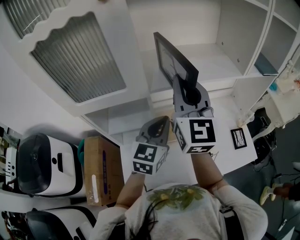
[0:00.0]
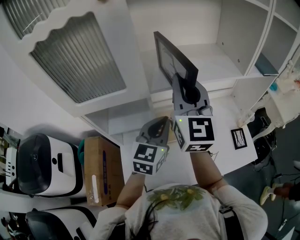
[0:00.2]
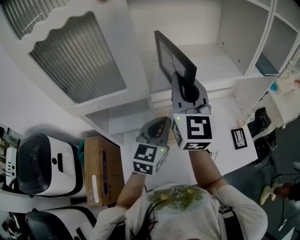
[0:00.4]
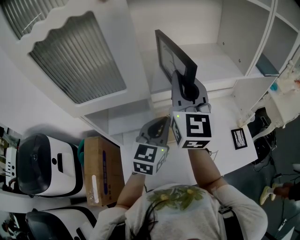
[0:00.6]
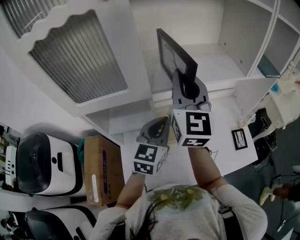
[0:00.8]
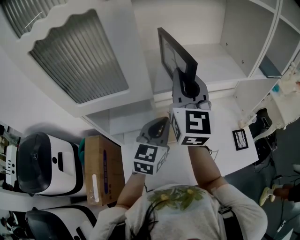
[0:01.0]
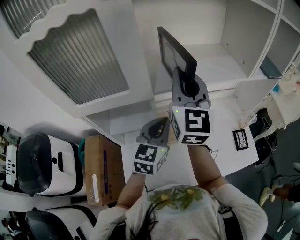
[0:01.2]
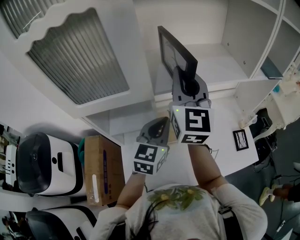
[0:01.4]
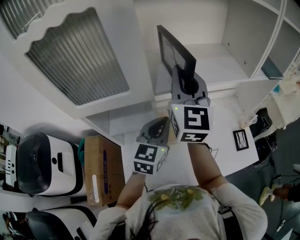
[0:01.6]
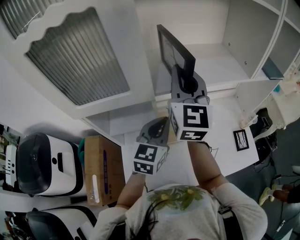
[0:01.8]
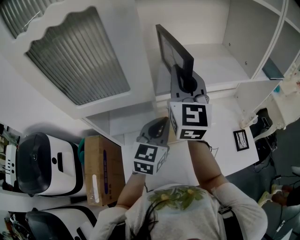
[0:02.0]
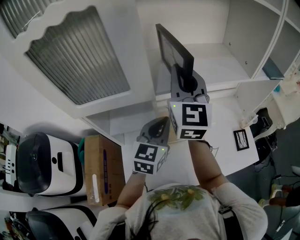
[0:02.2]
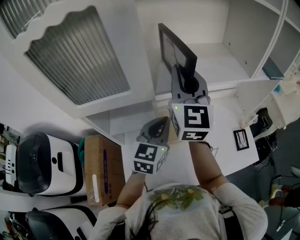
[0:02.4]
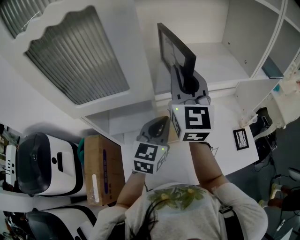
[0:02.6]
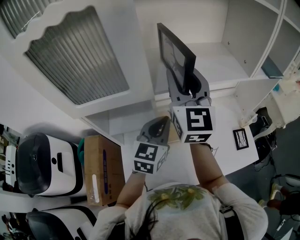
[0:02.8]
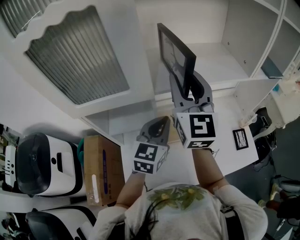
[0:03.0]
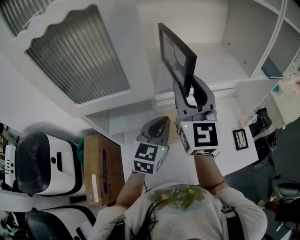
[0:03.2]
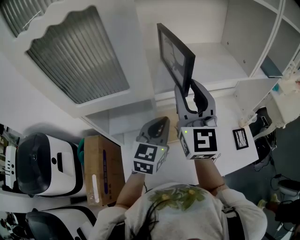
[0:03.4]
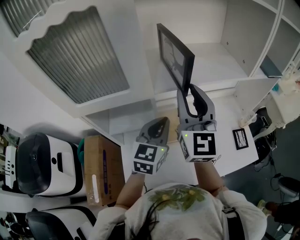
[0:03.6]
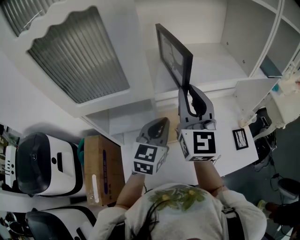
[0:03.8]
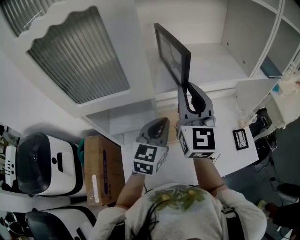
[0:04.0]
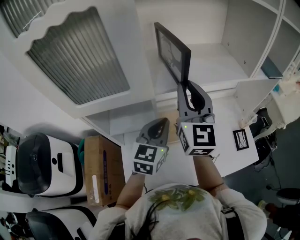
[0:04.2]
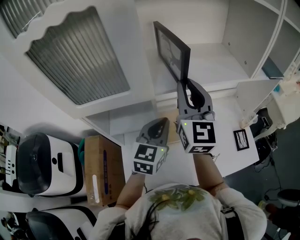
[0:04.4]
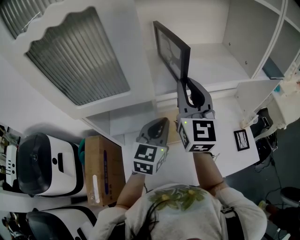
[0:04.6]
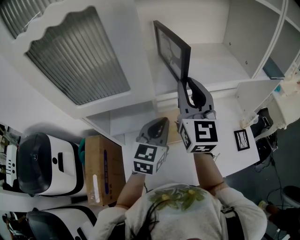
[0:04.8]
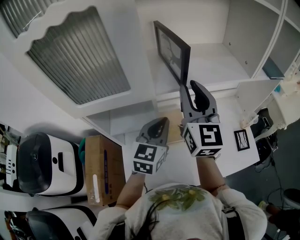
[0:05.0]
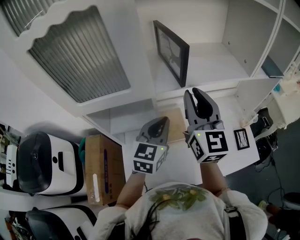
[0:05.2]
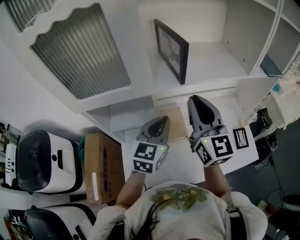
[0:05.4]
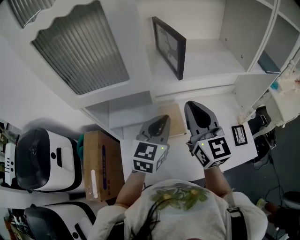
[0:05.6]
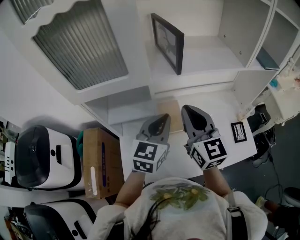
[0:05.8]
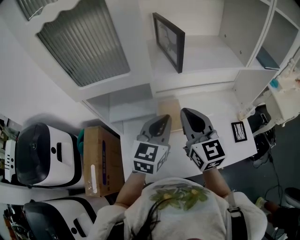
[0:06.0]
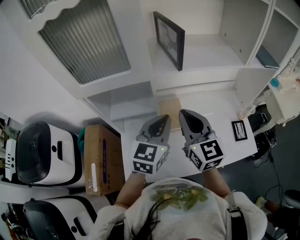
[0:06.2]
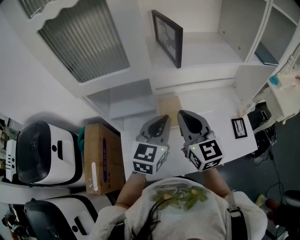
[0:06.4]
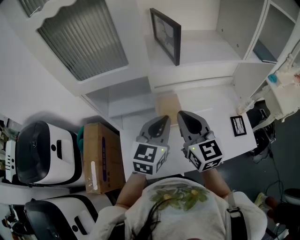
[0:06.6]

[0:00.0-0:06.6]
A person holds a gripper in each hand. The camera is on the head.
0:00.0 to 0:01.6: The right gripper changes place by some 5 cm.
0:01.6 to 0:03.2: The right gripper opens up.
0:03.2 to 0:05.0: The grippers make only small movements.
0:05.0 to 0:06.6: The right gripper travels backward and downward by about 15 cm, and changes its angle by roughly 20 degrees; the left gripper is displaced backward by about 10 cm.

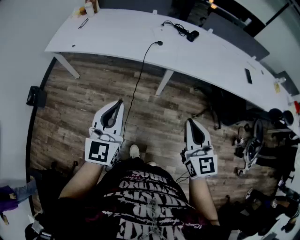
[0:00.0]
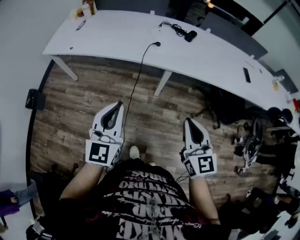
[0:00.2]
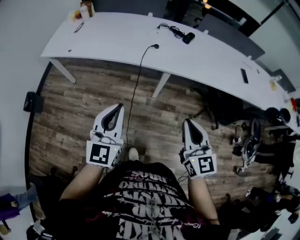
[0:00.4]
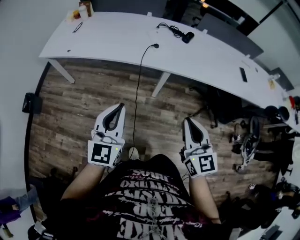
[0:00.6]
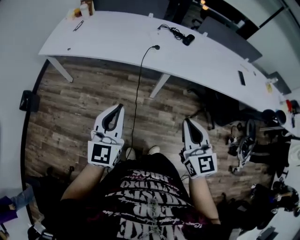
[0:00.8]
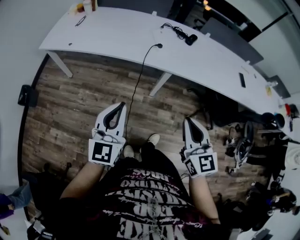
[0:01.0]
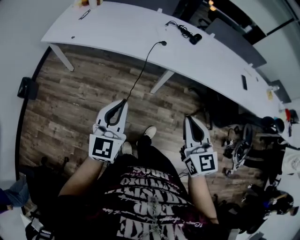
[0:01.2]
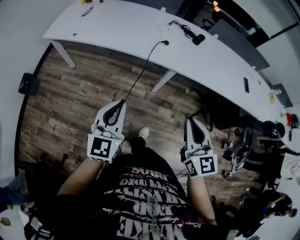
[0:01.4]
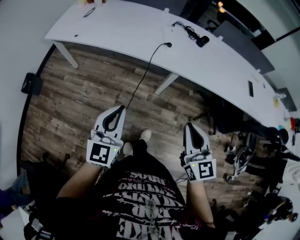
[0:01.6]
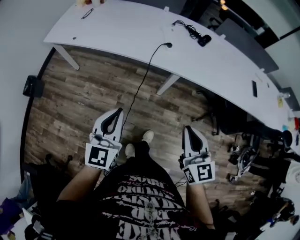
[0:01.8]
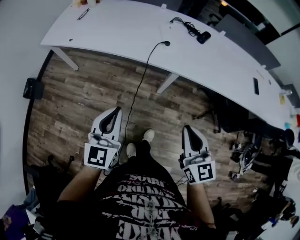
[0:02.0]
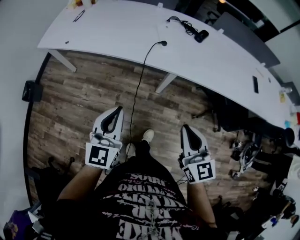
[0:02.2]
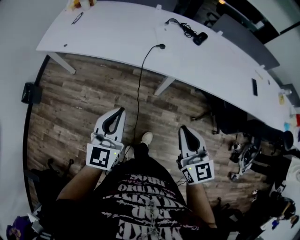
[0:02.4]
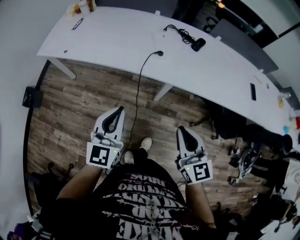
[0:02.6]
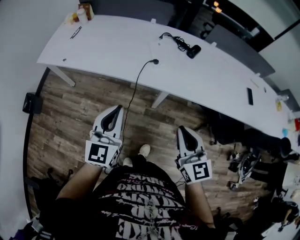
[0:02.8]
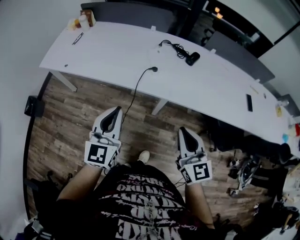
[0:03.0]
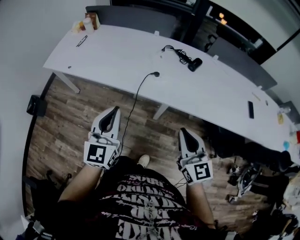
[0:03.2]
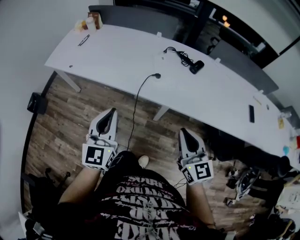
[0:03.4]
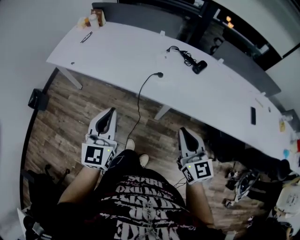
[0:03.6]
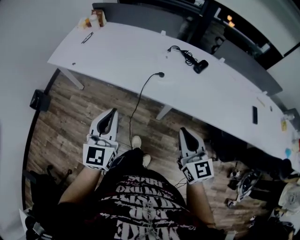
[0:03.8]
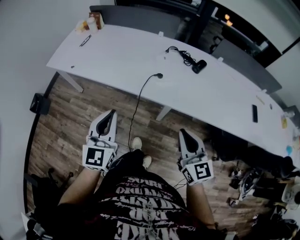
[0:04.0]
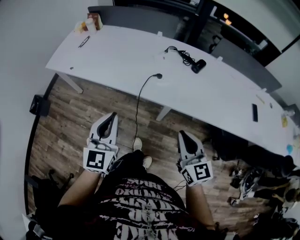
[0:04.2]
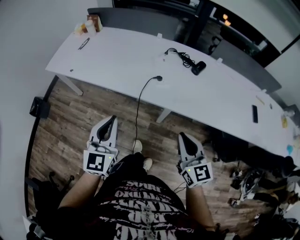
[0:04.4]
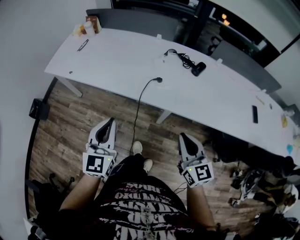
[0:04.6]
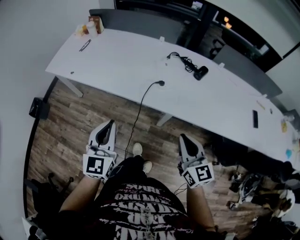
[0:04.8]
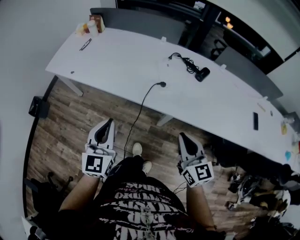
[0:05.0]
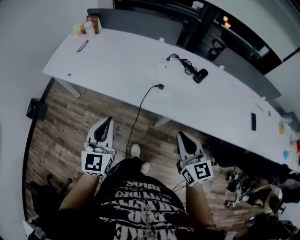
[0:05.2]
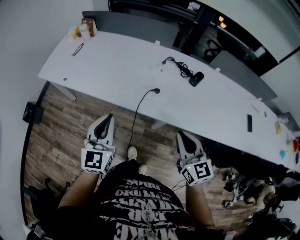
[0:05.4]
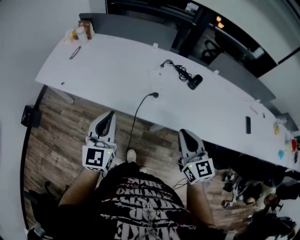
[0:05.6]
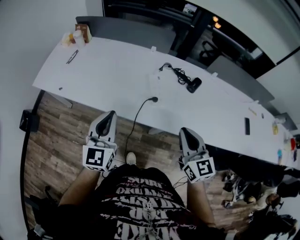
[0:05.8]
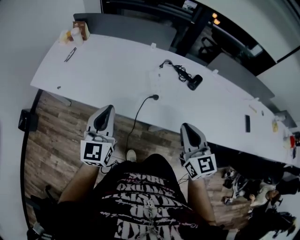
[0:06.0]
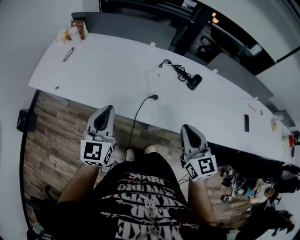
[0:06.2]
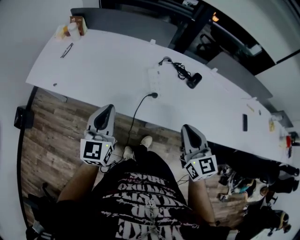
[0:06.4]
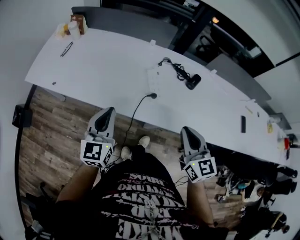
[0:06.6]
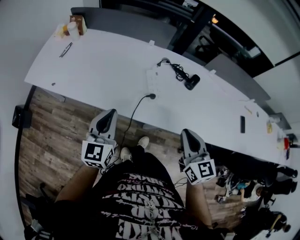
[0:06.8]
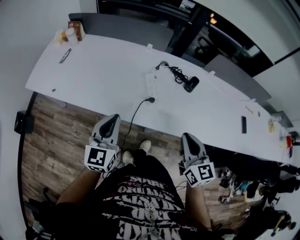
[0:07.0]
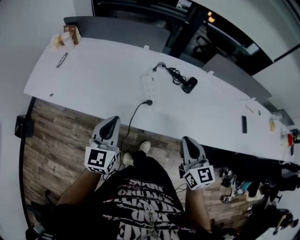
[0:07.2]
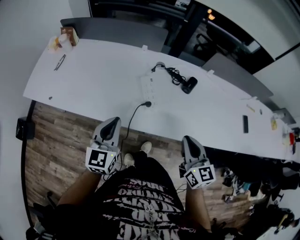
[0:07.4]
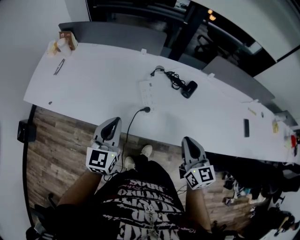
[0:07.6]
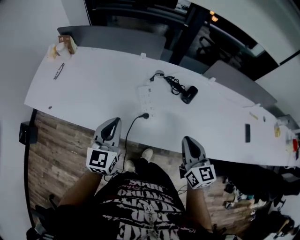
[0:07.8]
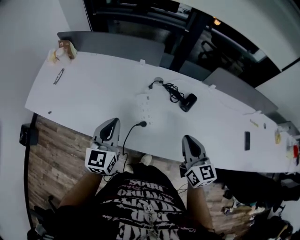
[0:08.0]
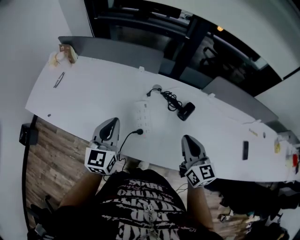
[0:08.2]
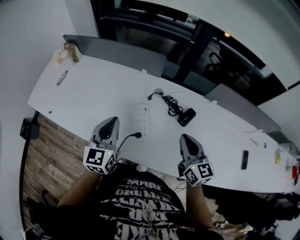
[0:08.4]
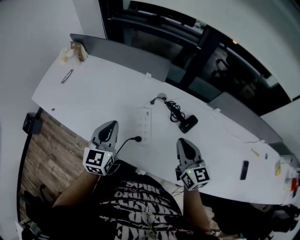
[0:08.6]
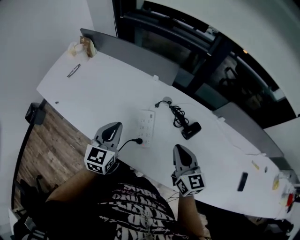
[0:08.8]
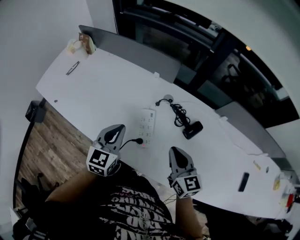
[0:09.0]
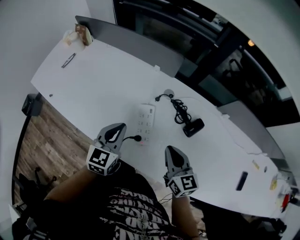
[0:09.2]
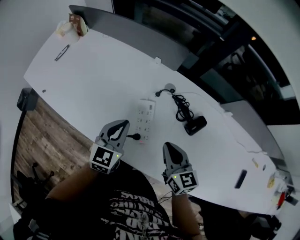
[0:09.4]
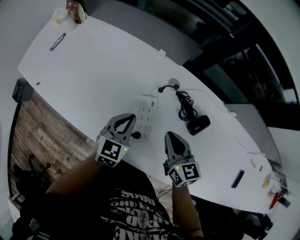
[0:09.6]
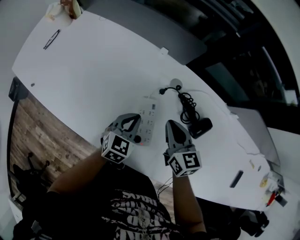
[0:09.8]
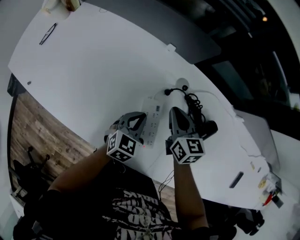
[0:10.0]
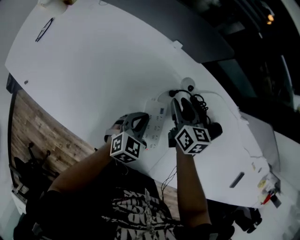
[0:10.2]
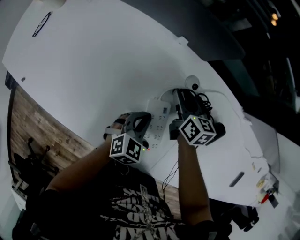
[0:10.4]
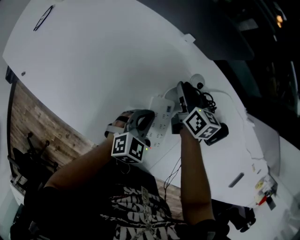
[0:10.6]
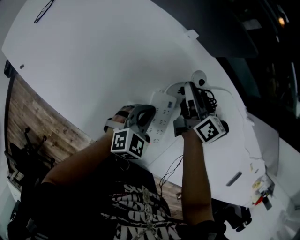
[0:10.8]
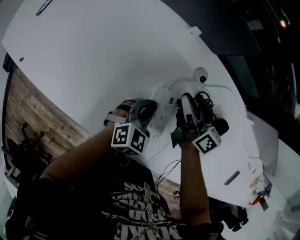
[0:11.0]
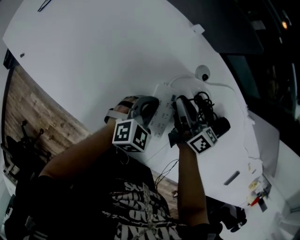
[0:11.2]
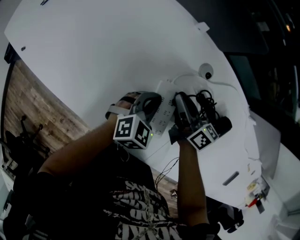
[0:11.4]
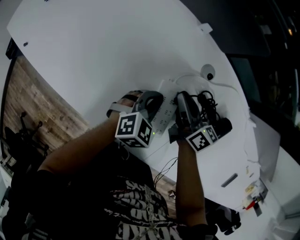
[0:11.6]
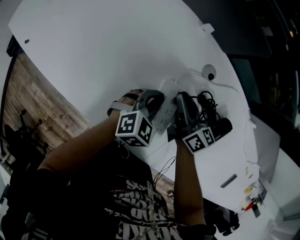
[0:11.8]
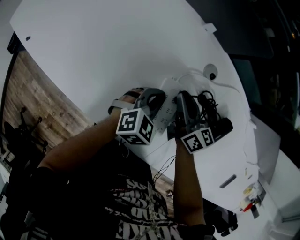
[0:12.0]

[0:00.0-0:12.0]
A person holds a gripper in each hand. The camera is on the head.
0:00.0 to 0:01.6: The right gripper shifts by some 5 cm. Meanwhile the left gripper shifts by approximately 5 cm.
0:01.6 to 0:03.0: The two grippers go about 15 cm forward and to the right.
0:03.0 to 0:04.4: The grippers make only small movements.
0:04.4 to 0:06.0: Both grippers move forward, about 15 cm.
0:06.0 to 0:07.6: The right gripper goes about 5 cm to the right. Meanwhile the left gripper is displaced to the right and forward by roughly 10 cm.
0:07.6 to 0:09.0: The left gripper shifts some 15 cm forward and to the right. The right gripper goes approximately 15 cm forward.
0:09.0 to 0:10.4: The right gripper shifts roughly 35 cm forward and downward, changes its angle by about 30 degrees, and opens its fingers; the left gripper heads downward, covering some 25 cm, and turns by approximately 30 degrees.
0:10.4 to 0:12.0: The right gripper goes roughly 10 cm backward, rotates some 20 degrees, and closes.

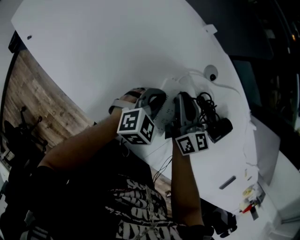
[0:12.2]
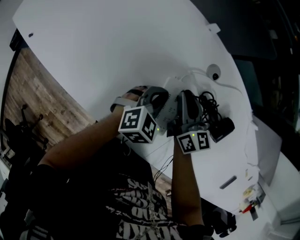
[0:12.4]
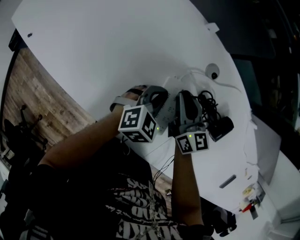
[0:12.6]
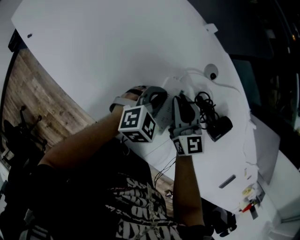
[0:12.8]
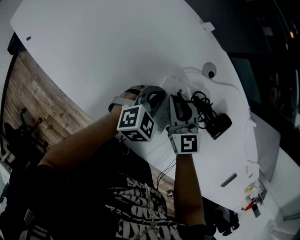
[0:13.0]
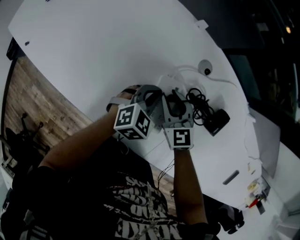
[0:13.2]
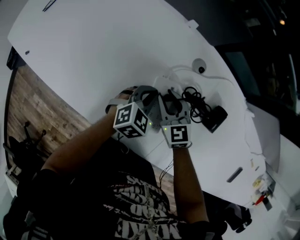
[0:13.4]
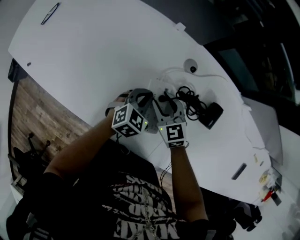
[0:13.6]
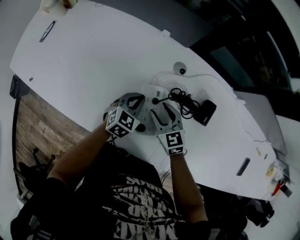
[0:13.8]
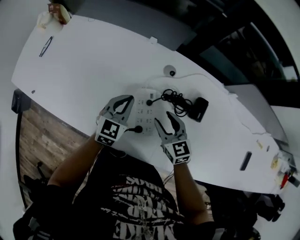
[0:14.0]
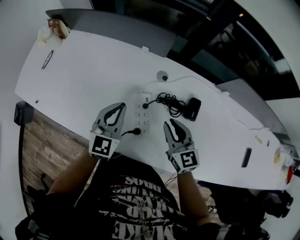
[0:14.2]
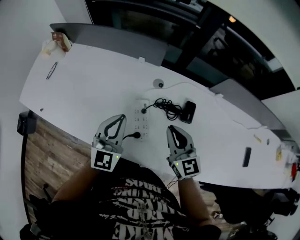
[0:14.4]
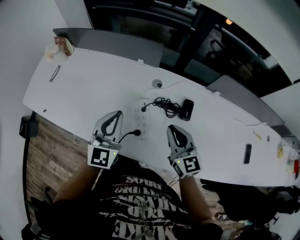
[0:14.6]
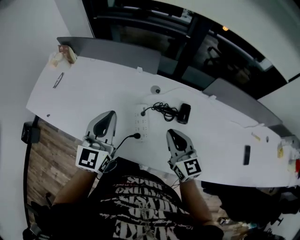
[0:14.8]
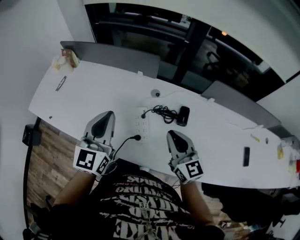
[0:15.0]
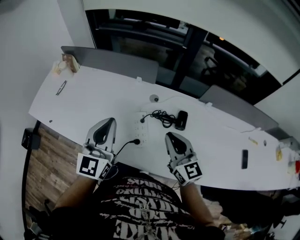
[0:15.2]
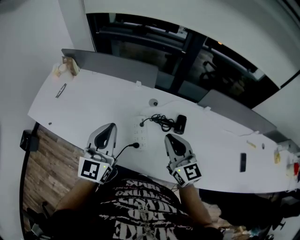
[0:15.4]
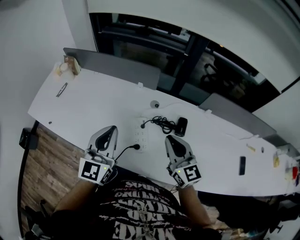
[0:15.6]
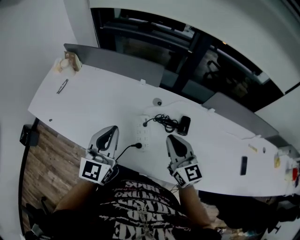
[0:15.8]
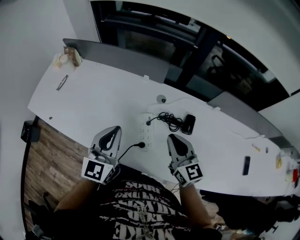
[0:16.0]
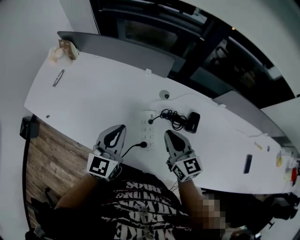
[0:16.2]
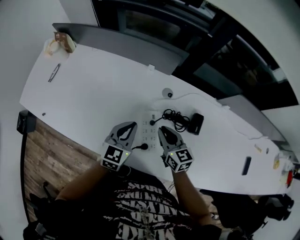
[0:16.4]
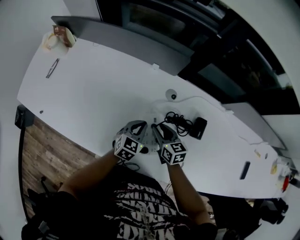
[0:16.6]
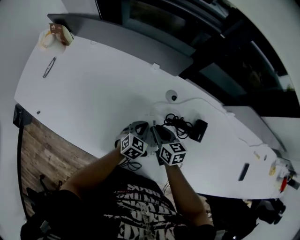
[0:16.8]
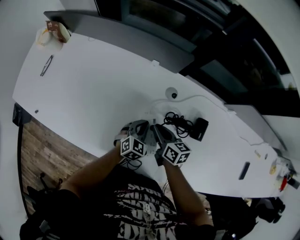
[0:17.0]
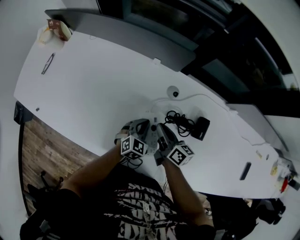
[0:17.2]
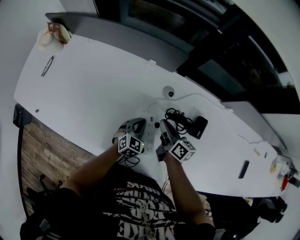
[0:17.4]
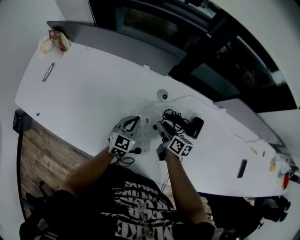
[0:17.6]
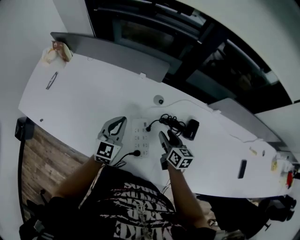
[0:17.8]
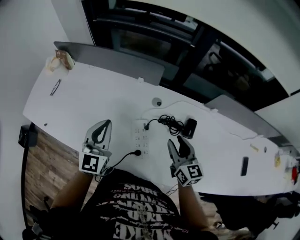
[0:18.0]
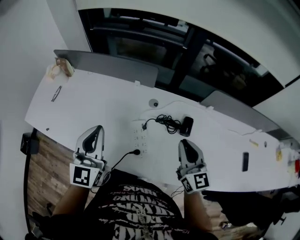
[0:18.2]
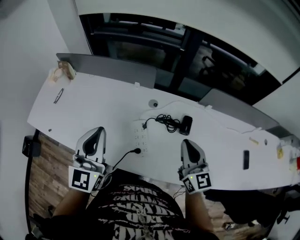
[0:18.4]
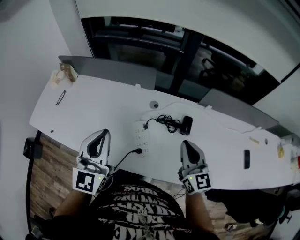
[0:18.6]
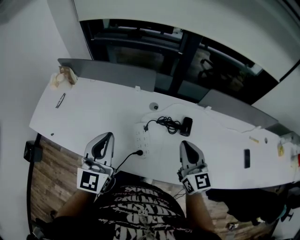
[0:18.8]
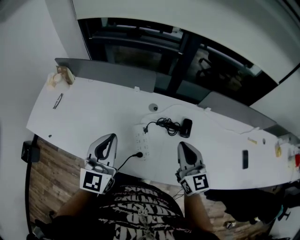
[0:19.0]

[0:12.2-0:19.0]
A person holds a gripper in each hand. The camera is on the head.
0:12.2 to 0:13.6: The right gripper changes place by about 5 cm, turns by approximately 40 degrees, and opens.
0:13.6 to 0:15.0: The right gripper travels upward, backward and to the right by some 35 cm, turns by approximately 30 degrees, and closes, while the left gripper travels upward by about 40 cm, and angles its fingers upward, by roughly 40 degrees.
0:15.0 to 0:16.2: The left gripper goes about 10 cm downward. Meanwhile the right gripper goes roughly 10 cm forward and downward.
0:16.2 to 0:17.6: Both grippers move downward and forward, roughly 20 cm. The right gripper swivels roughly 40 degrees, and opens its fingers.
0:17.6 to 0:19.0: The grippers both shift upward and backward by some 35 cm. The right gripper twists about 40 degrees counterclockwise, seen from behind, and closes up. The left gripper turns by approximately 30 degrees.
